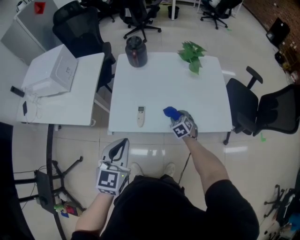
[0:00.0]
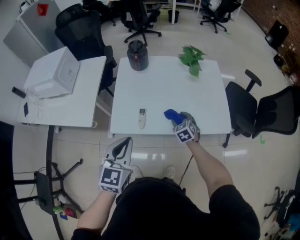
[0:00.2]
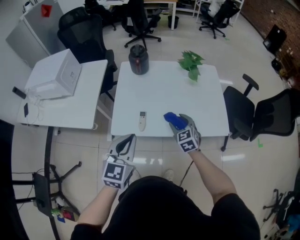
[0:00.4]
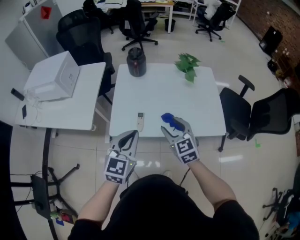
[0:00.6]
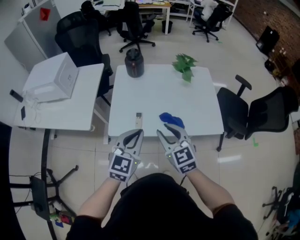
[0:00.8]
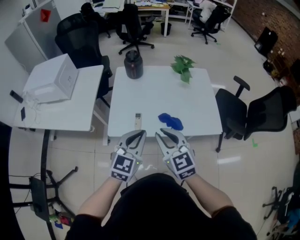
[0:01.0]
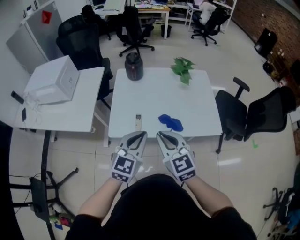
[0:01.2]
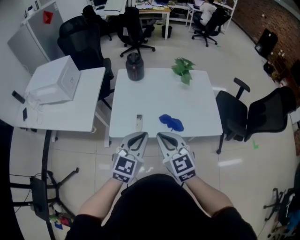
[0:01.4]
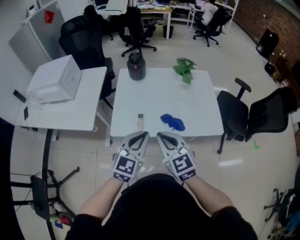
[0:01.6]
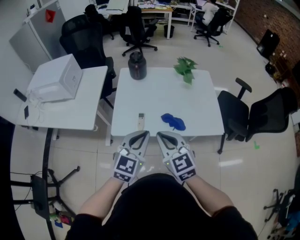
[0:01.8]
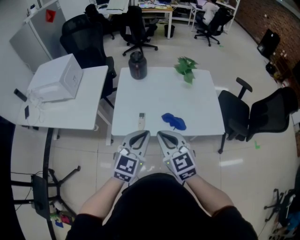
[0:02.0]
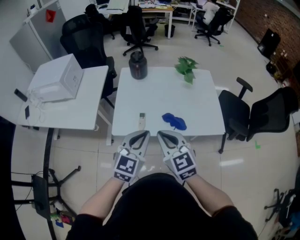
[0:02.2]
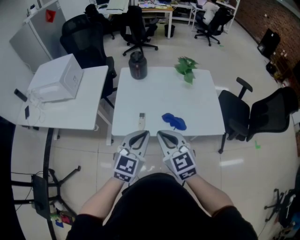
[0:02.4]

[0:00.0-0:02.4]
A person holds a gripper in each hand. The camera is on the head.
0:00.0 to 0:01.2: The left gripper shifts some 5 cm to the right. Meanwhile the right gripper heads upward and backward, covering roughly 35 cm, points its fingers approximately 30 degrees further upward, and closes up.
0:01.2 to 0:02.4: There are only small adjustments of the grippers.

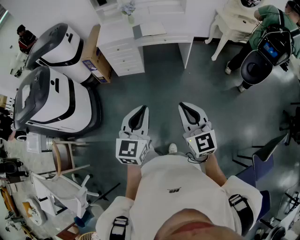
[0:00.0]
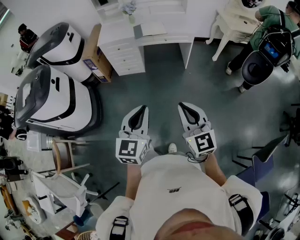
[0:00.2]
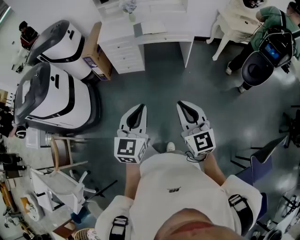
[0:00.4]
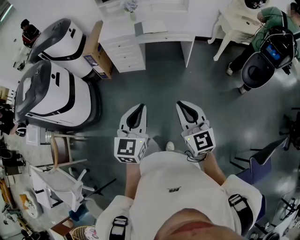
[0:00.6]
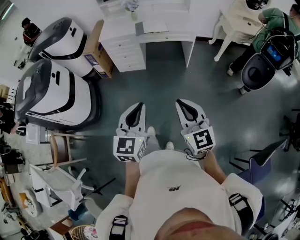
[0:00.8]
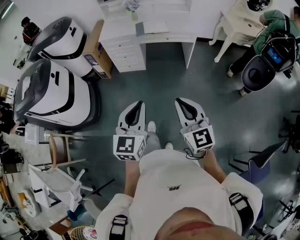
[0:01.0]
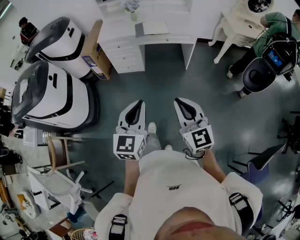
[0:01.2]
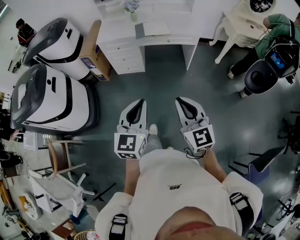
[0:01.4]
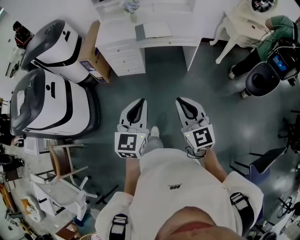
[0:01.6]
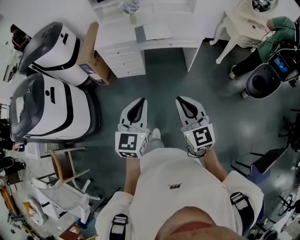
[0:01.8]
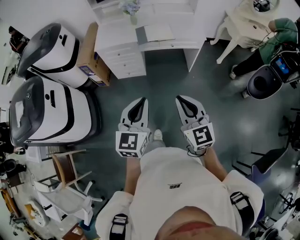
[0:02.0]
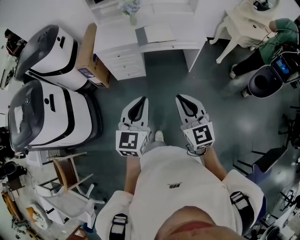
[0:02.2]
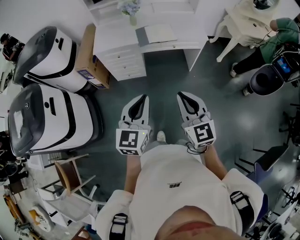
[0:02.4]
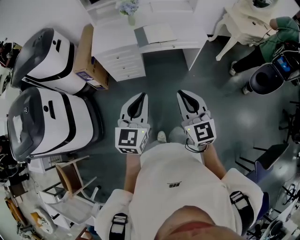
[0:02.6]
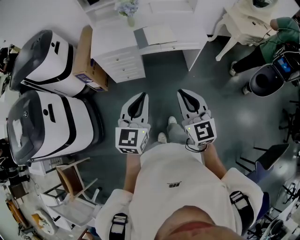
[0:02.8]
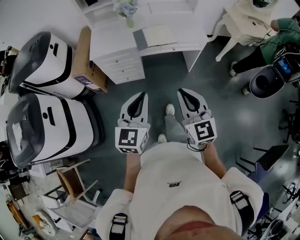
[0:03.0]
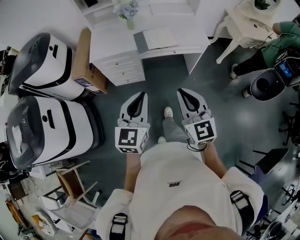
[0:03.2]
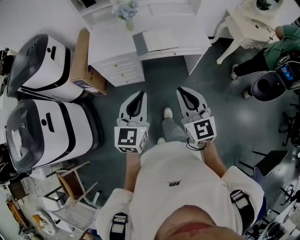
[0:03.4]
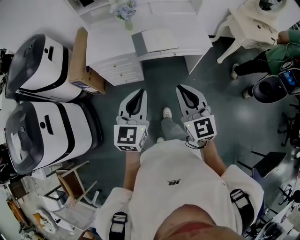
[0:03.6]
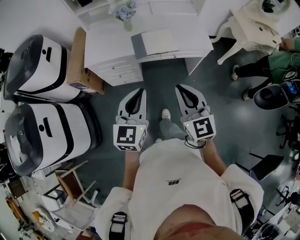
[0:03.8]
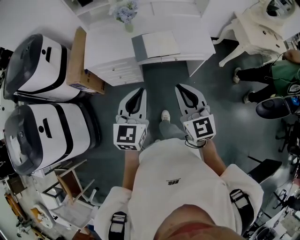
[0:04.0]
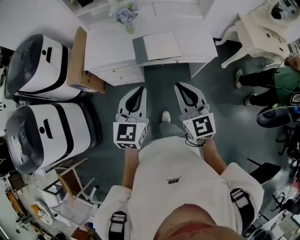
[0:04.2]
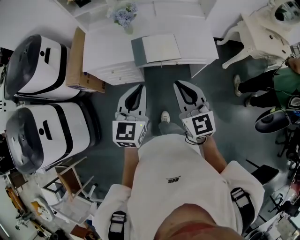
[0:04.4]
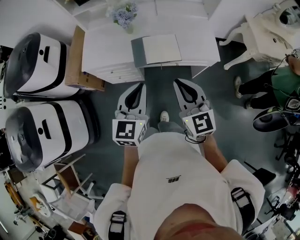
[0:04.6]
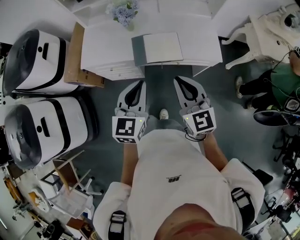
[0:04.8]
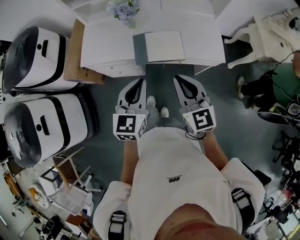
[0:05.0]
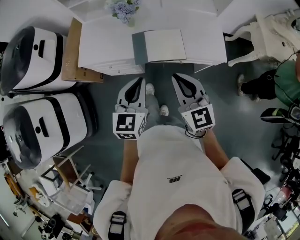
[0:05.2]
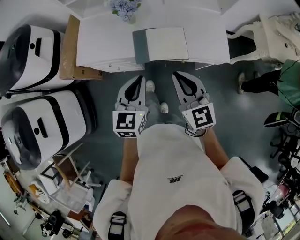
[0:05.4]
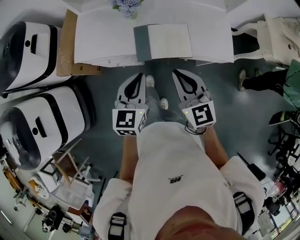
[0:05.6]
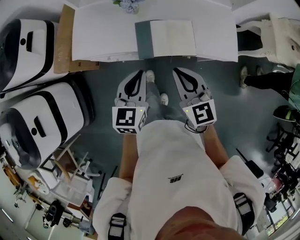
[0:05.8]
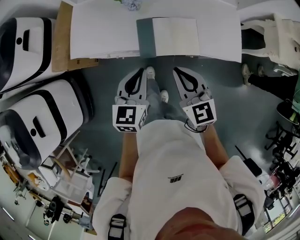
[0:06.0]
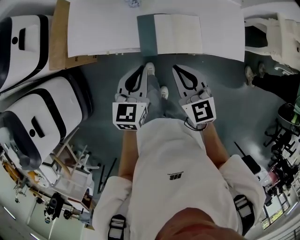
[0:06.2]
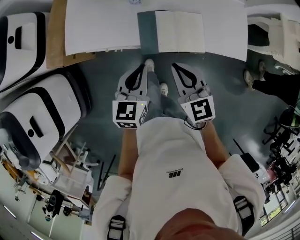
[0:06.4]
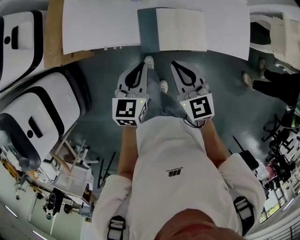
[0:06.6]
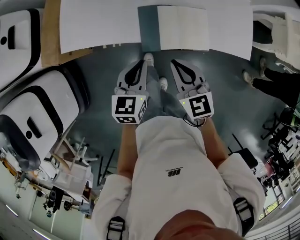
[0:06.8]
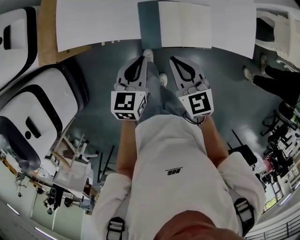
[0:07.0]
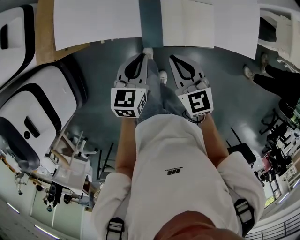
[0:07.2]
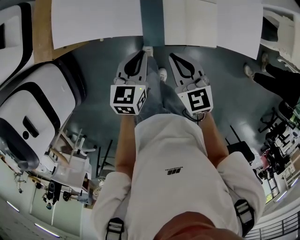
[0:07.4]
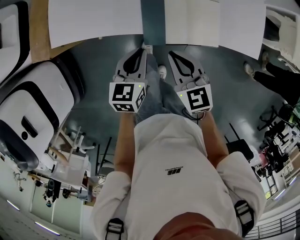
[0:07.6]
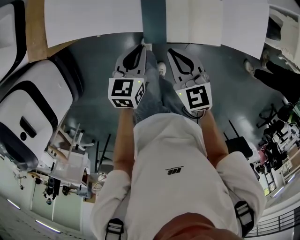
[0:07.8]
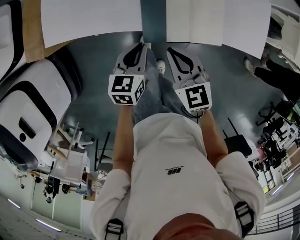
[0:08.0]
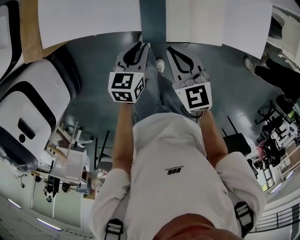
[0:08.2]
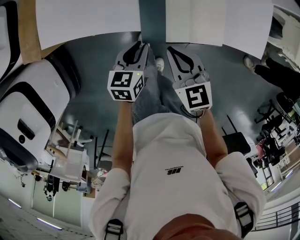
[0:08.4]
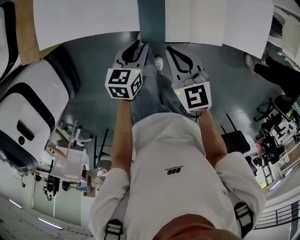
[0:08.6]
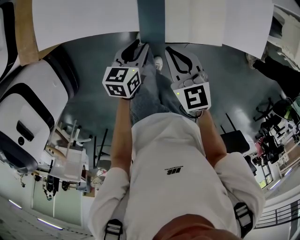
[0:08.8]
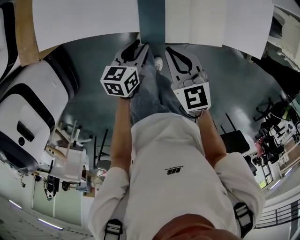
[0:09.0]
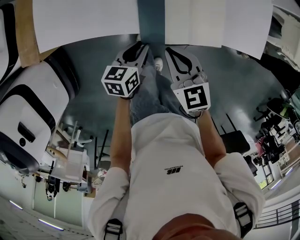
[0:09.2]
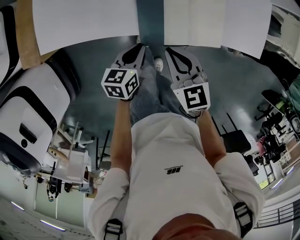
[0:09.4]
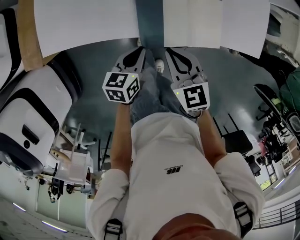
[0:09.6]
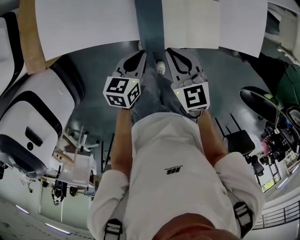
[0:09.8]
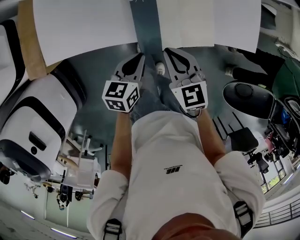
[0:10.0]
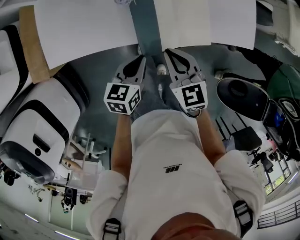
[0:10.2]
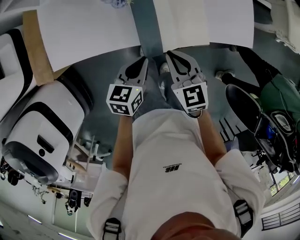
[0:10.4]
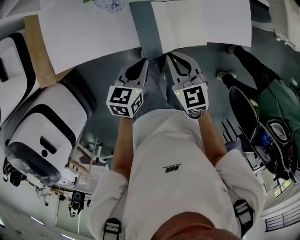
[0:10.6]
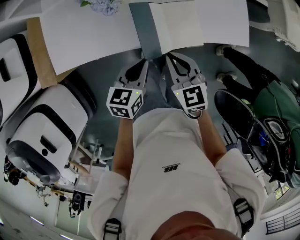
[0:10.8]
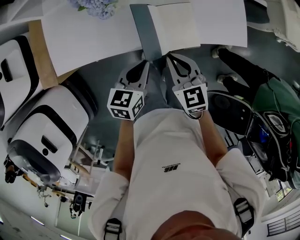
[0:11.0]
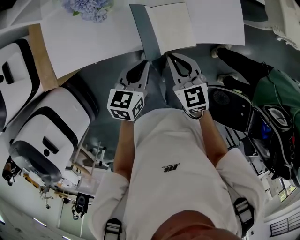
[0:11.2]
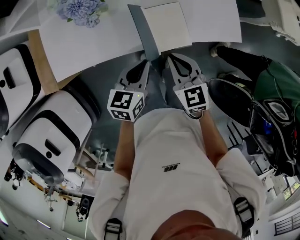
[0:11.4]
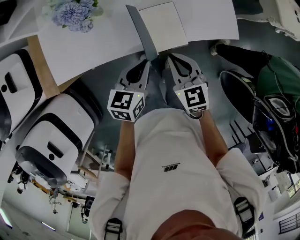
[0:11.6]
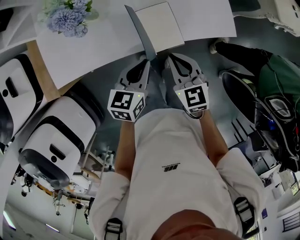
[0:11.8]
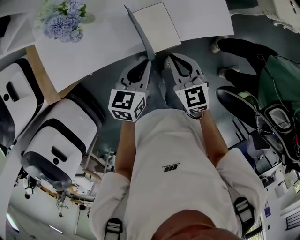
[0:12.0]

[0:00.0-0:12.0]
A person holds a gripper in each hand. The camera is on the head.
0:00.0 to 0:01.6: Both grippers move forward, roughly 15 cm.
0:01.6 to 0:03.0: The grippers both shift forward by some 20 cm.
0:03.0 to 0:04.4: Both grippers travel together forward, some 25 cm.
0:04.4 to 0:06.0: The grippers both shift forward and downward by some 25 cm.
0:06.0 to 0:07.6: The two grippers go approximately 15 cm downward.
0:07.6 to 0:09.0: The left gripper moves downward, roughly 10 cm.
0:09.0 to 0:10.4: The right gripper ends up approximately 5 cm from where it was, while the left gripper travels upward by approximately 10 cm.
0:10.4 to 0:12.0: The right gripper moves to the right, about 15 cm. The left gripper goes about 15 cm to the right and upward.

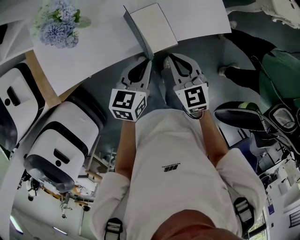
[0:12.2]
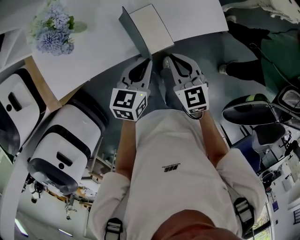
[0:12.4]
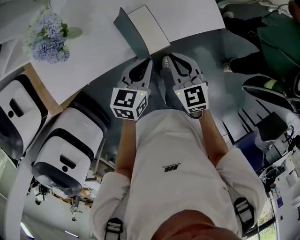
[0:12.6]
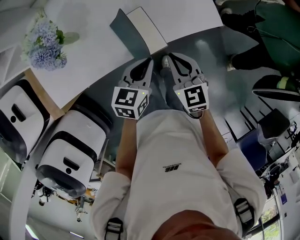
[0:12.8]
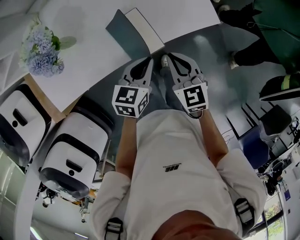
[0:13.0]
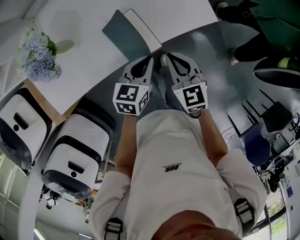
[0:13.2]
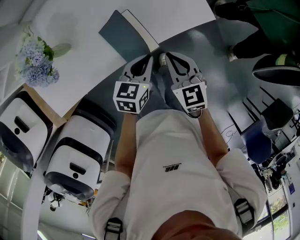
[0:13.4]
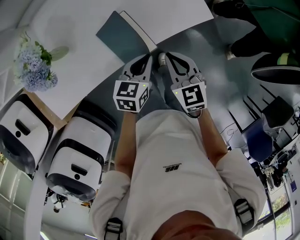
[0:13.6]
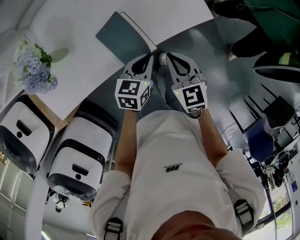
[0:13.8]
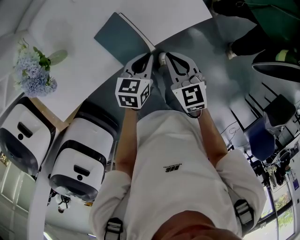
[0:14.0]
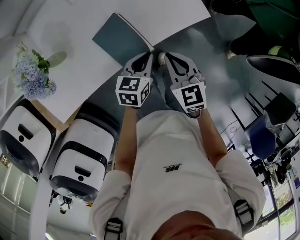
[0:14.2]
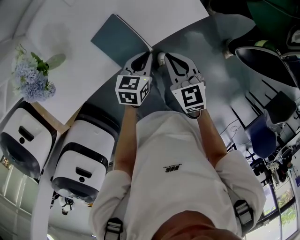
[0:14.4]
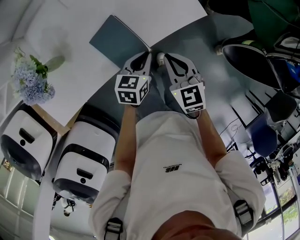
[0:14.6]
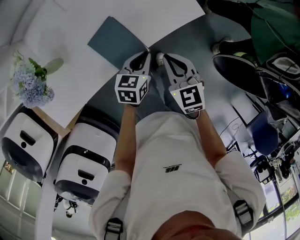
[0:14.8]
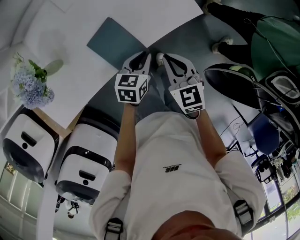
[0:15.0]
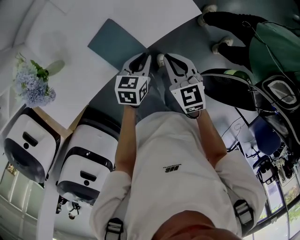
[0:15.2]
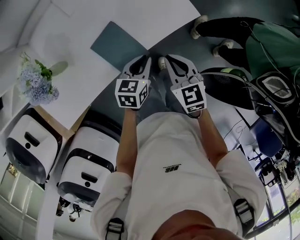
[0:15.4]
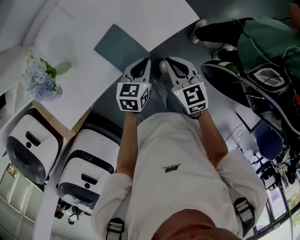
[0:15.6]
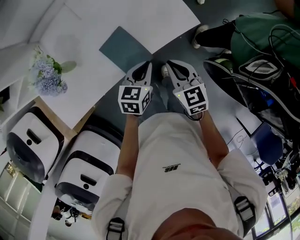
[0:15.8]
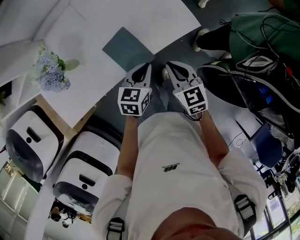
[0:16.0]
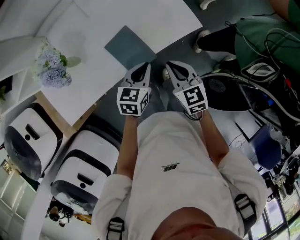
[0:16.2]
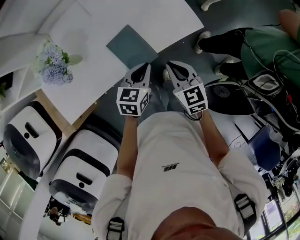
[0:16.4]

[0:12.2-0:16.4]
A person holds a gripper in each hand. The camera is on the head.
0:12.2 to 0:13.6: The left gripper shifts approximately 10 cm to the right and downward, while the right gripper travels to the right by roughly 10 cm.
0:13.6 to 0:15.0: The left gripper shifts by about 5 cm.
0:15.0 to 0:16.4: The right gripper travels upward by some 5 cm; the left gripper goes roughly 10 cm upward.

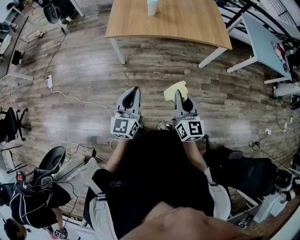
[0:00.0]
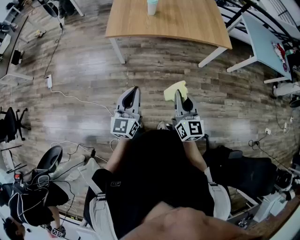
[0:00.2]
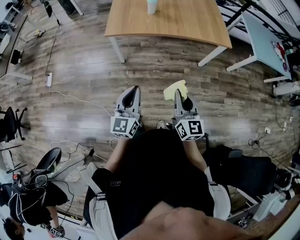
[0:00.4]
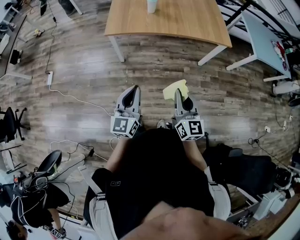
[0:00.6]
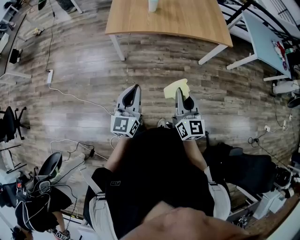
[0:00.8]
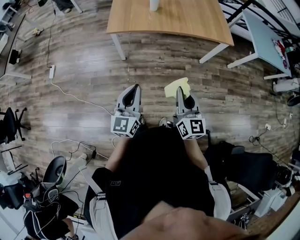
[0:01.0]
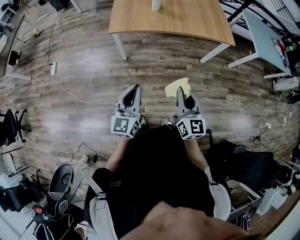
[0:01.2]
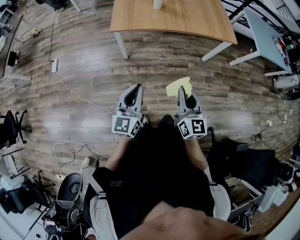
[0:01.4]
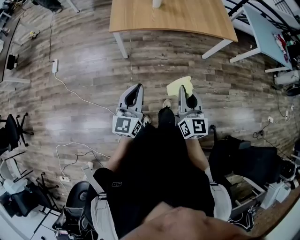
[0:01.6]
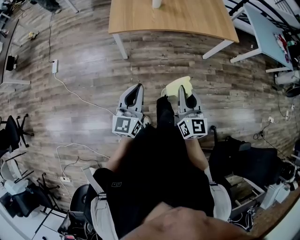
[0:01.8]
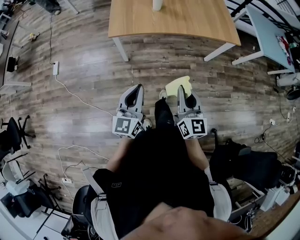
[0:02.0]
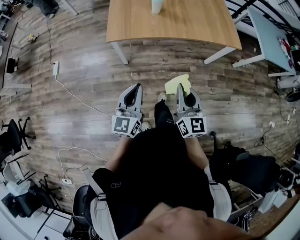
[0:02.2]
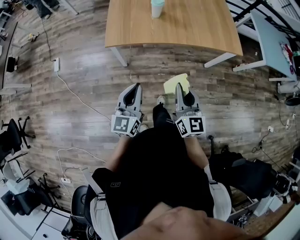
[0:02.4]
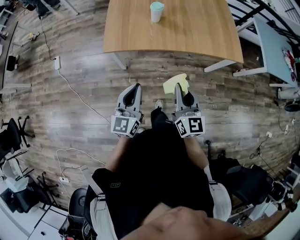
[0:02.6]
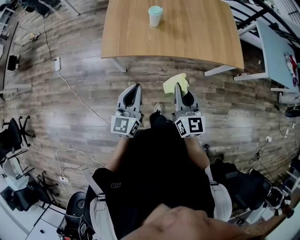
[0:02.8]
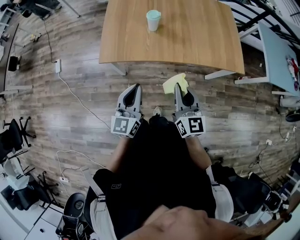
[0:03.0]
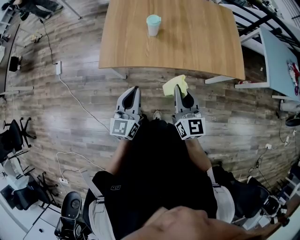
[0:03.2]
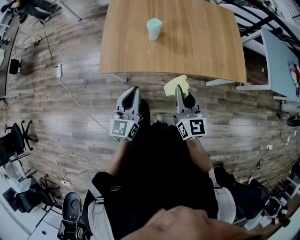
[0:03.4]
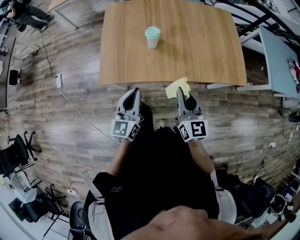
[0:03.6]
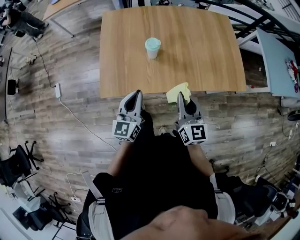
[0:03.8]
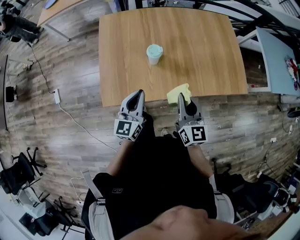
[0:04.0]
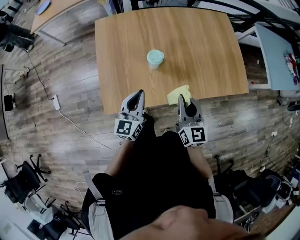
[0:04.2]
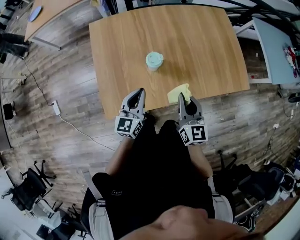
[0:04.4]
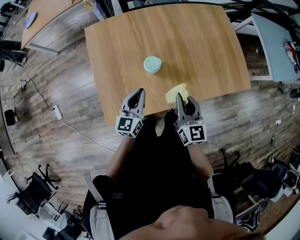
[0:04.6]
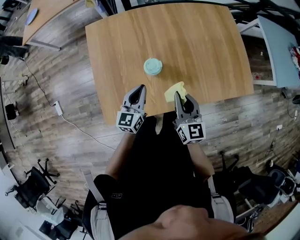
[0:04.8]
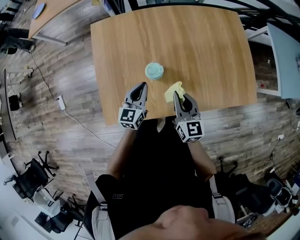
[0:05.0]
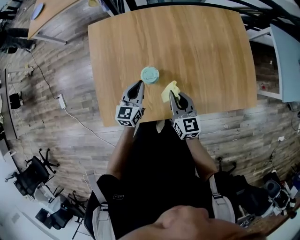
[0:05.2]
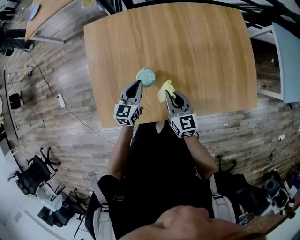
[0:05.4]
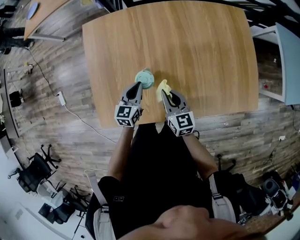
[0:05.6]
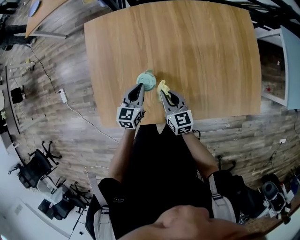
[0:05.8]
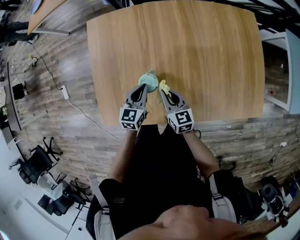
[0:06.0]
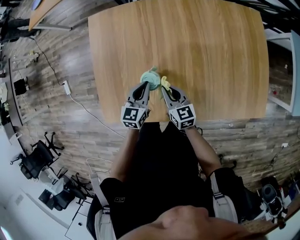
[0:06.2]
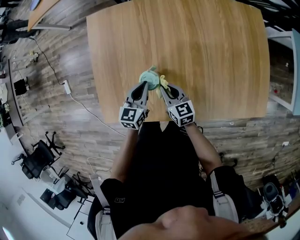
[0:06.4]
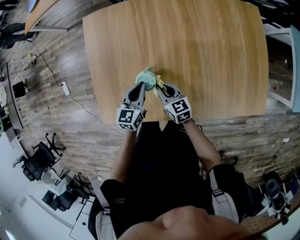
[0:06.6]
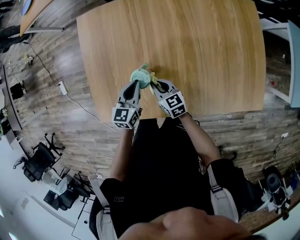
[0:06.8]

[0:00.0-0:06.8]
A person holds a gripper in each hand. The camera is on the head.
0:00.0 to 0:01.4: The two grippers go approximately 5 cm to the left.
0:01.4 to 0:02.8: Both grippers travel together forward, about 30 cm.
0:02.8 to 0:04.0: Both grippers travel together forward, about 25 cm.
0:04.0 to 0:05.4: The grippers both shift forward and downward by roughly 25 cm.
0:05.4 to 0:06.8: The right gripper goes about 15 cm downward and to the left, and swivels about 20 degrees.
